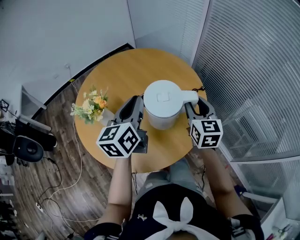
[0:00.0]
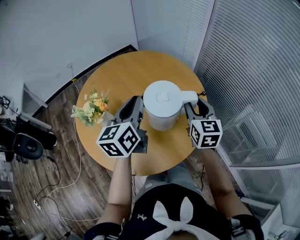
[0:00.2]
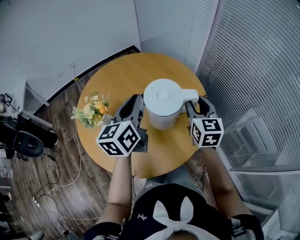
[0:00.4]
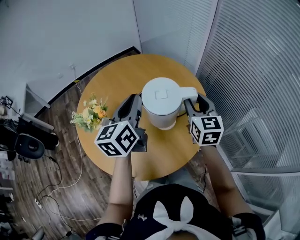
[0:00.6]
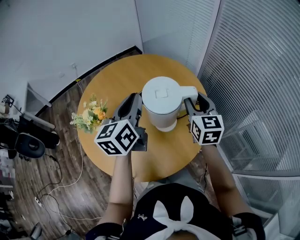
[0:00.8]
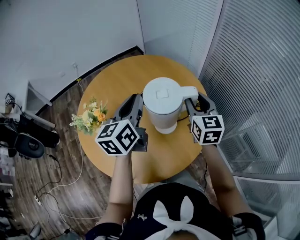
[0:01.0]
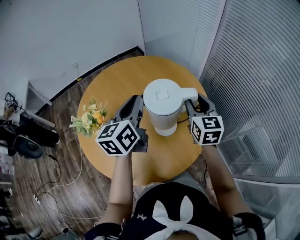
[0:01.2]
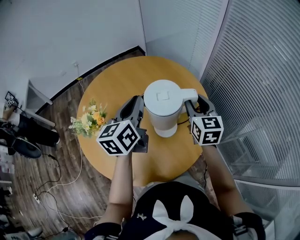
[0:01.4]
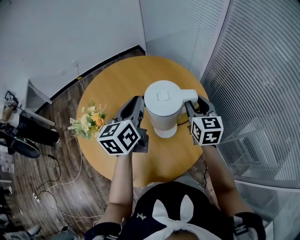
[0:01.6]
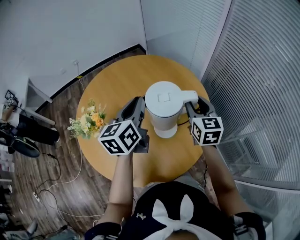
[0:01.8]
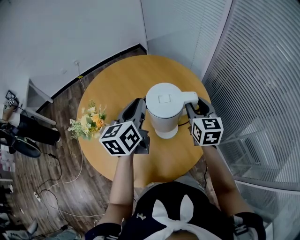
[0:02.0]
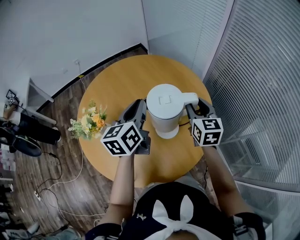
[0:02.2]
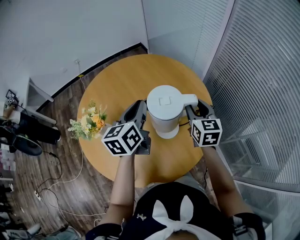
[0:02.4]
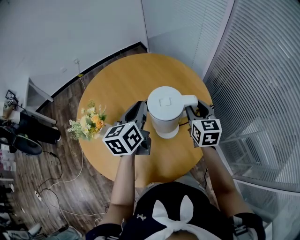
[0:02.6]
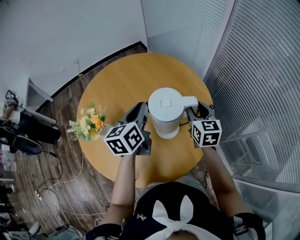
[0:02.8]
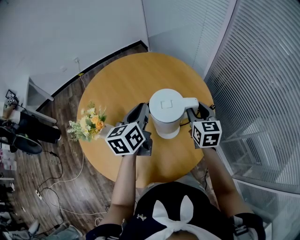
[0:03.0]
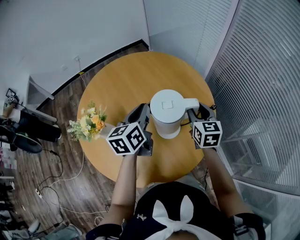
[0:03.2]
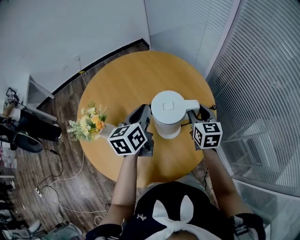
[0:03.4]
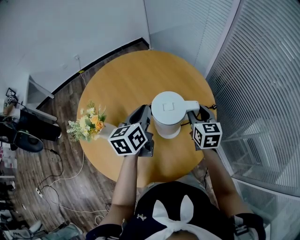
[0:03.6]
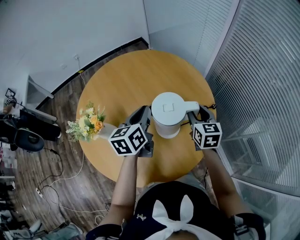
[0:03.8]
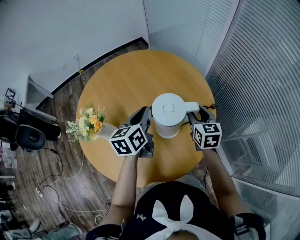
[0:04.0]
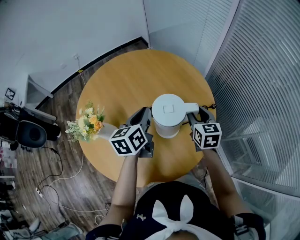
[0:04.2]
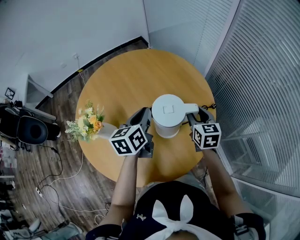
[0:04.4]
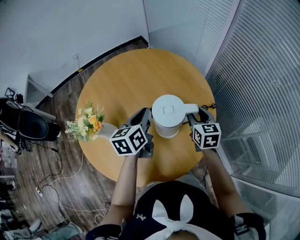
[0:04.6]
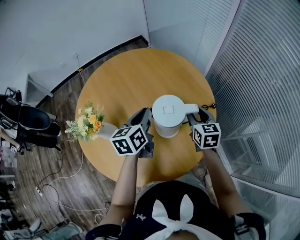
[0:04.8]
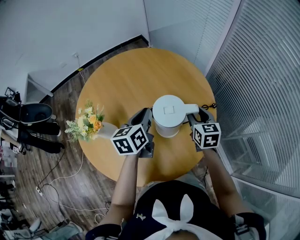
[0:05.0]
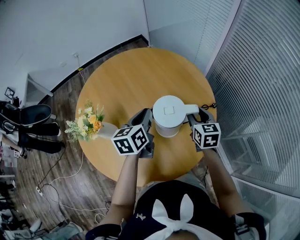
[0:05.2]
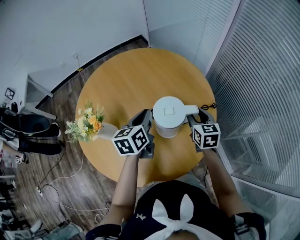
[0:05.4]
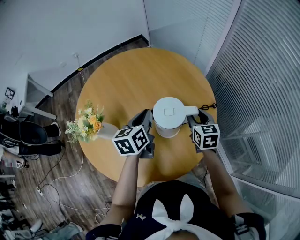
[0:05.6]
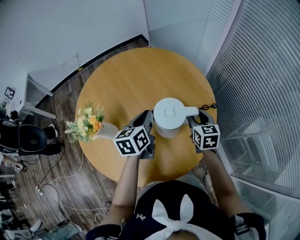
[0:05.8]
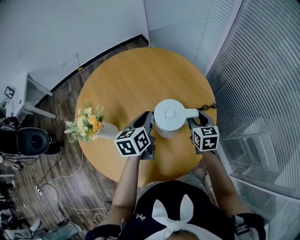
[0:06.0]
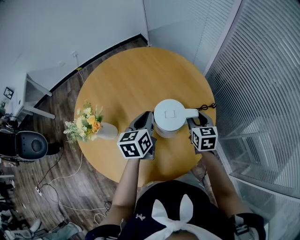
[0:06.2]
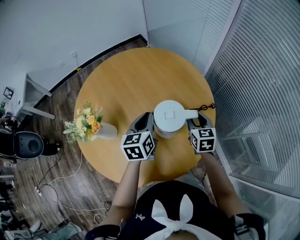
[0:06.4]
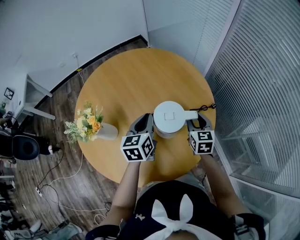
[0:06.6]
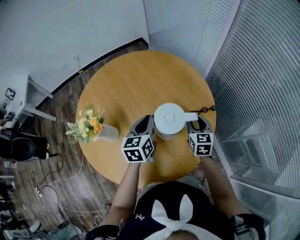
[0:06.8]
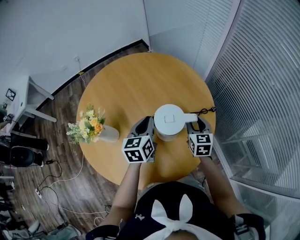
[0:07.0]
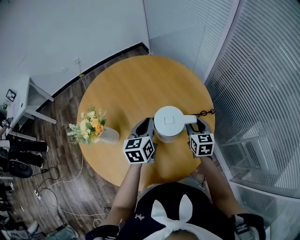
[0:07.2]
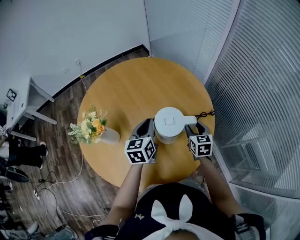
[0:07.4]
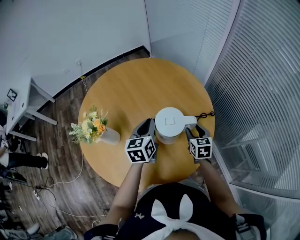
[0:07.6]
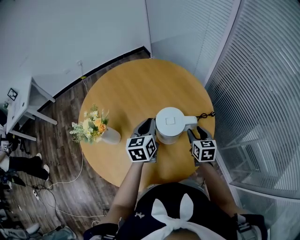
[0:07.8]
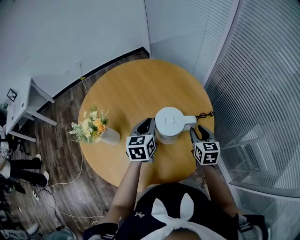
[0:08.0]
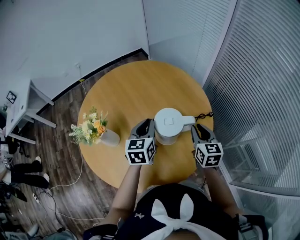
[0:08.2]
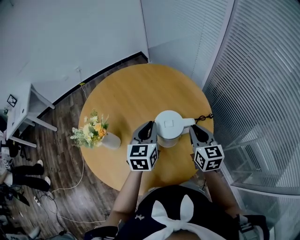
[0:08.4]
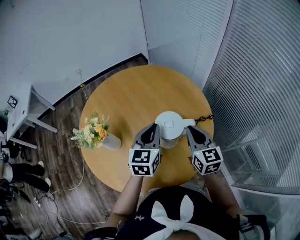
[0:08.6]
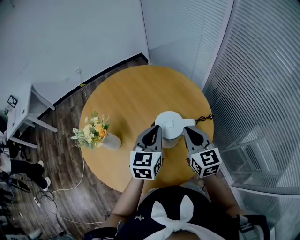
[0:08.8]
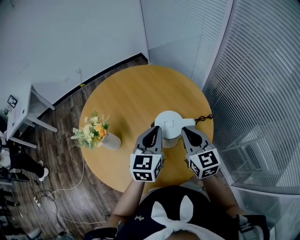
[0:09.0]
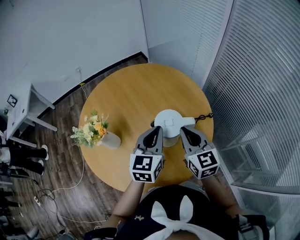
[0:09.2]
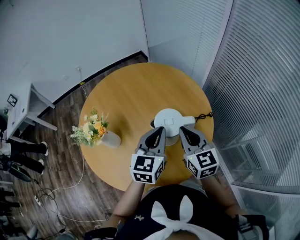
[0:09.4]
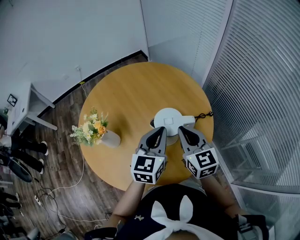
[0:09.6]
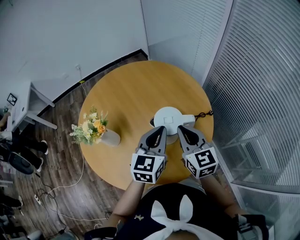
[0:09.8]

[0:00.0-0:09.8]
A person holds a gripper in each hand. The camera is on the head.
0:00.0 to 0:01.4: Both grippers move forward, approximately 10 cm.
0:01.4 to 0:02.8: Both grippers move downward, some 5 cm.
0:02.8 to 0:04.2: The grippers stay close to where they were, moving slightly.
0:04.2 to 0:07.0: The grippers move only a little.
0:07.0 to 0:08.4: The right gripper moves upward, some 10 cm, and closes; the left gripper goes some 5 cm upward.
0:08.4 to 0:09.8: The right gripper travels to the left by about 5 cm; the left gripper ends up approximately 10 cm from where it was.

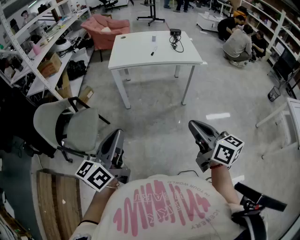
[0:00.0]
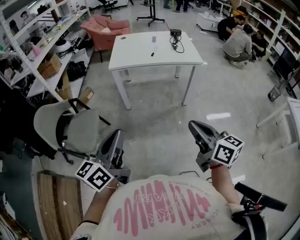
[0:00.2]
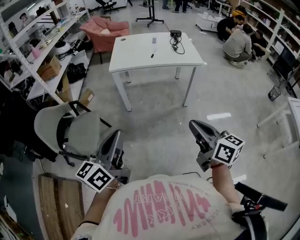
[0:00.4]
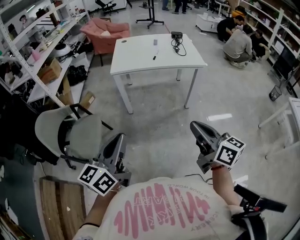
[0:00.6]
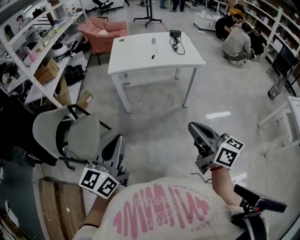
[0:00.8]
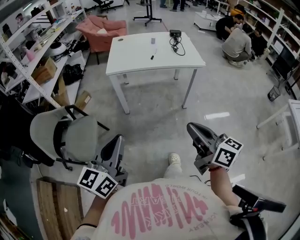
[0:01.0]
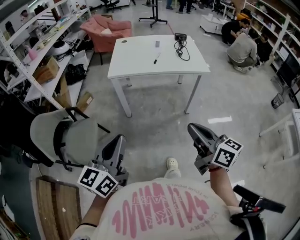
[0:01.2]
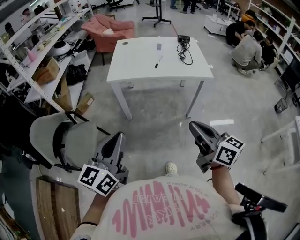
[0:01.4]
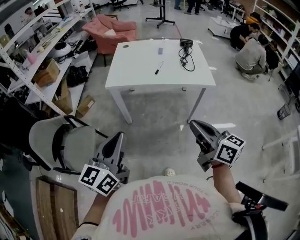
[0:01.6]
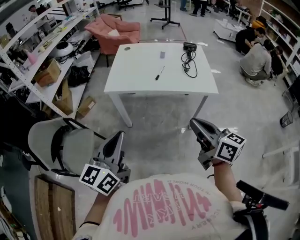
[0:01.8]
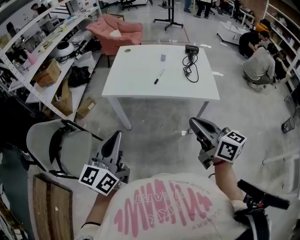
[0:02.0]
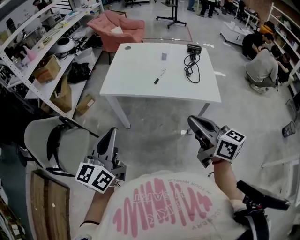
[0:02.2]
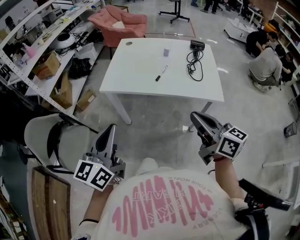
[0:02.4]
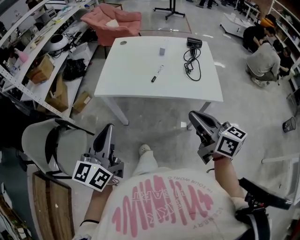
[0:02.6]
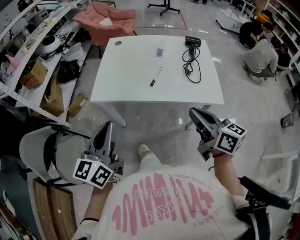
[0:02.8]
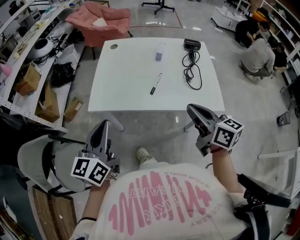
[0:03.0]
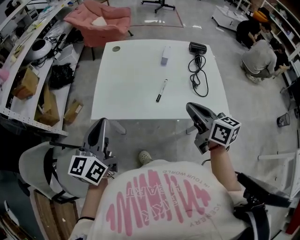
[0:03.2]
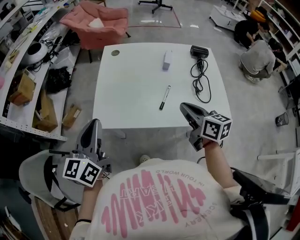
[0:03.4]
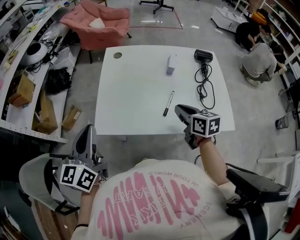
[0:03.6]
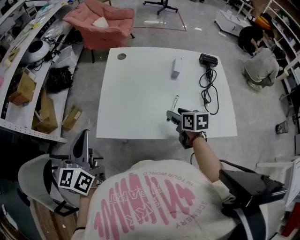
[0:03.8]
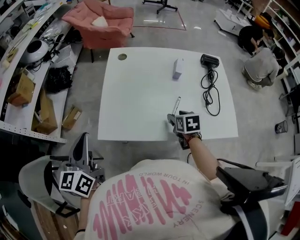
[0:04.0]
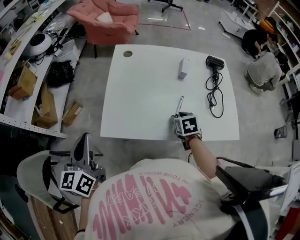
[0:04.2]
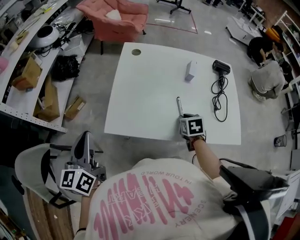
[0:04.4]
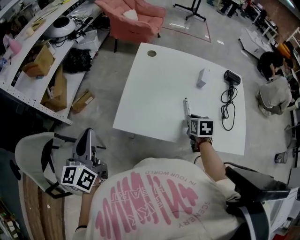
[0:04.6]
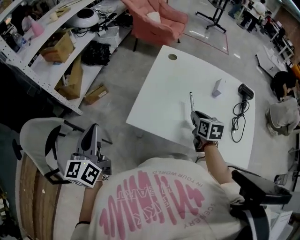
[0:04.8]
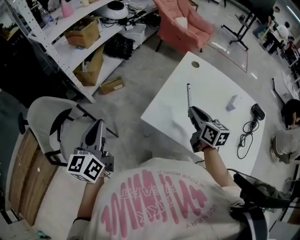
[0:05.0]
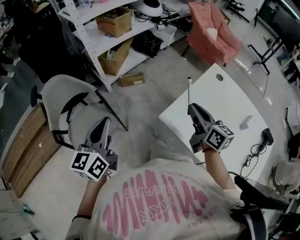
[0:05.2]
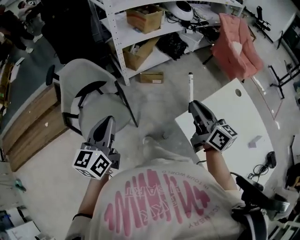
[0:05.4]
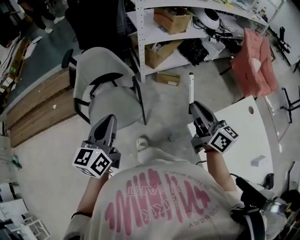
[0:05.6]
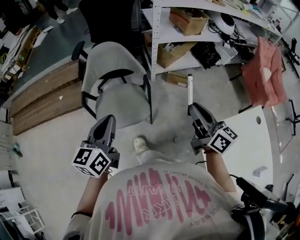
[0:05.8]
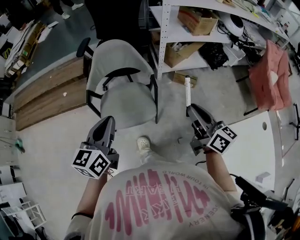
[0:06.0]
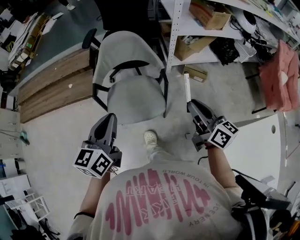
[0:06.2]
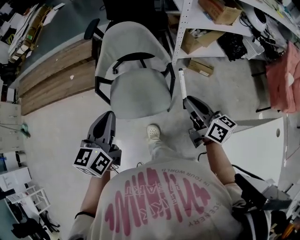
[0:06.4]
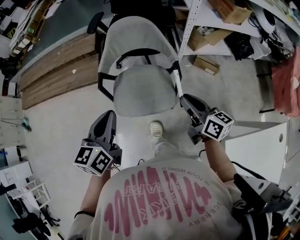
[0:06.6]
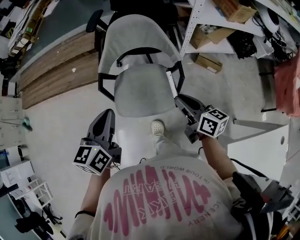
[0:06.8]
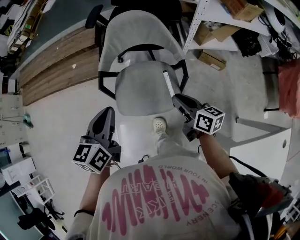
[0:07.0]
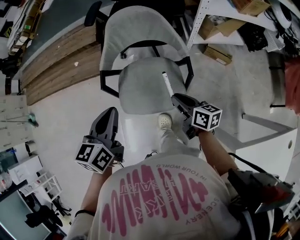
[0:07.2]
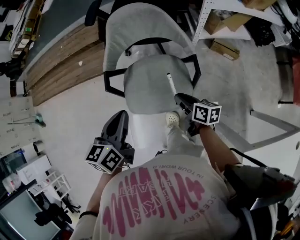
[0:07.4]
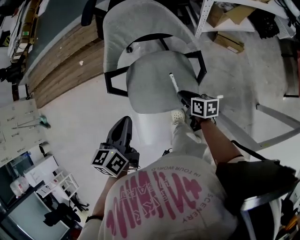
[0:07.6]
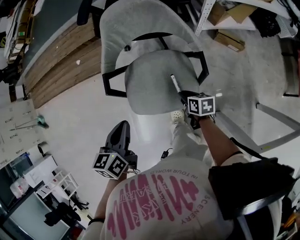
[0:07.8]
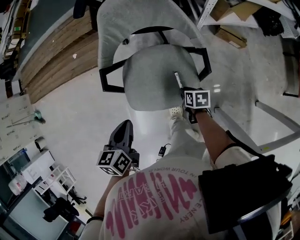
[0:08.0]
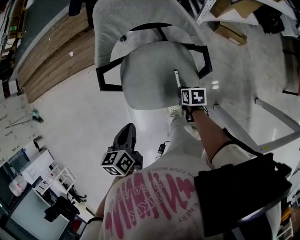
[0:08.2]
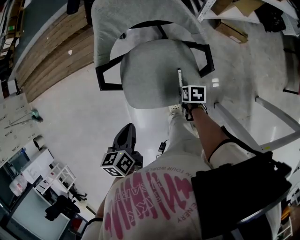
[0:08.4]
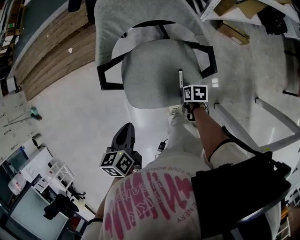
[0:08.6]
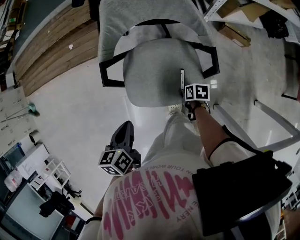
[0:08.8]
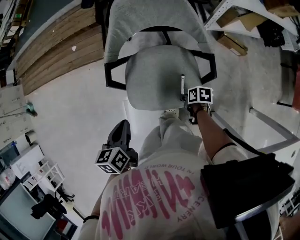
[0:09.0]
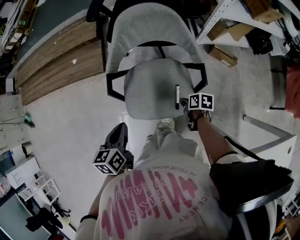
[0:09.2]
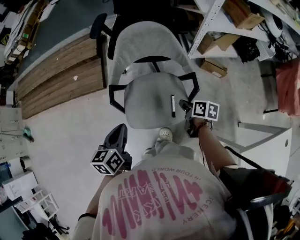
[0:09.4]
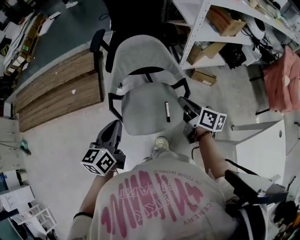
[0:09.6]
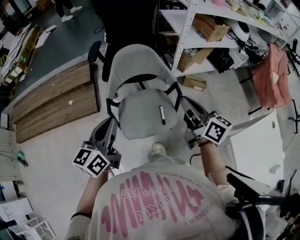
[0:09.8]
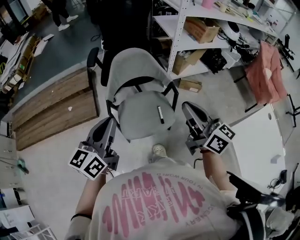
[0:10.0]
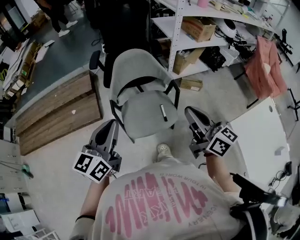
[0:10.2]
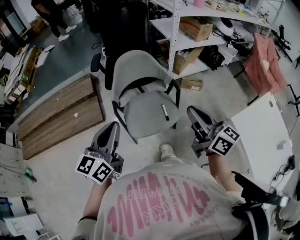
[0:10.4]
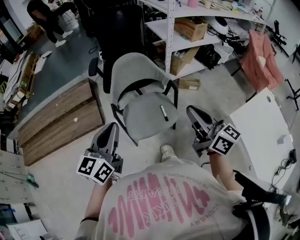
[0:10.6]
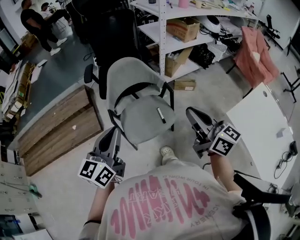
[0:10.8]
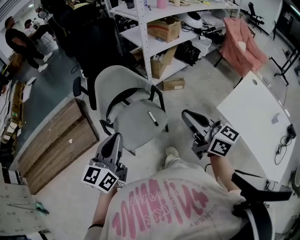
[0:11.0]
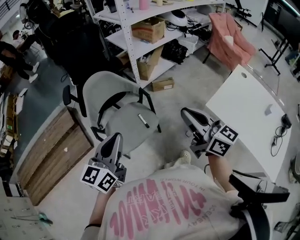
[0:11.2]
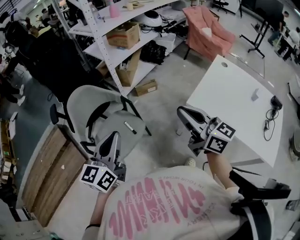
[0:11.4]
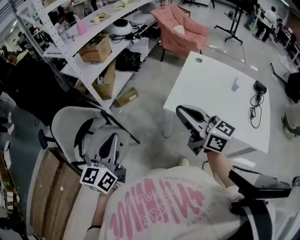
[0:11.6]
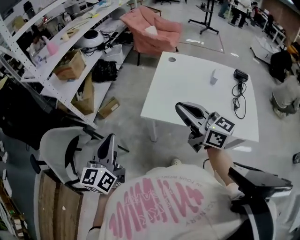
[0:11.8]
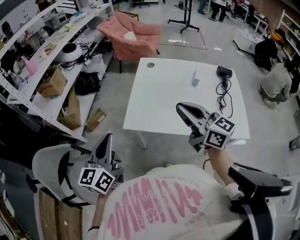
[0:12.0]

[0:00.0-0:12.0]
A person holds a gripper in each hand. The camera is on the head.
0:00.0 to 0:01.6: Both grippers travel together forward, roughly 20 cm.
0:01.6 to 0:03.0: Both grippers travel together forward, some 30 cm.
0:03.0 to 0:04.4: The left gripper goes approximately 20 cm to the left and forward, while the right gripper goes roughly 30 cm downward and forward, points its fingers some 50 degrees further downward, and opens, then closes again.
0:04.4 to 0:06.0: The right gripper moves some 60 cm, and angles its fingers upward, by about 60 degrees, while the left gripper moves roughly 35 cm, and rotates about 60 degrees.
0:06.0 to 0:07.6: The right gripper moves downward, to the left and forward, about 40 cm, and angles its fingers downward, by approximately 40 degrees, while the left gripper goes about 15 cm downward, forward and to the left, and swivels roughly 30 degrees.
0:07.6 to 0:09.0: Both grippers travel together downward, about 10 cm. The right gripper turns by approximately 30 degrees.
0:09.0 to 0:10.4: The right gripper travels upward by roughly 50 cm, and tilts its fingers roughly 60 degrees upward. Meanwhile the left gripper travels upward by some 25 cm, and points its fingers about 40 degrees further upward.
0:10.4 to 0:12.0: Both grippers are carried about 40 cm. The right gripper changes its angle by roughly 50 degrees; the left gripper changes its angle by about 50 degrees.

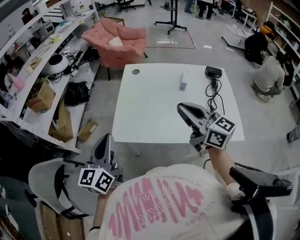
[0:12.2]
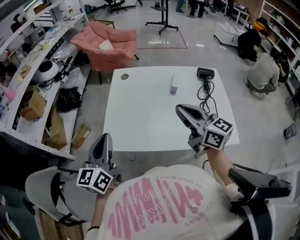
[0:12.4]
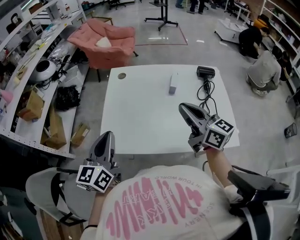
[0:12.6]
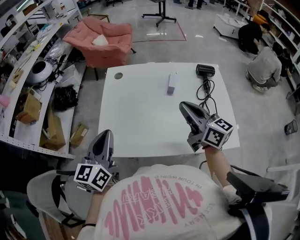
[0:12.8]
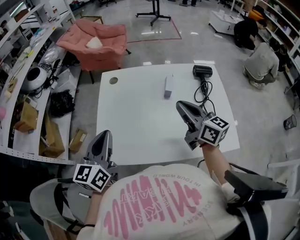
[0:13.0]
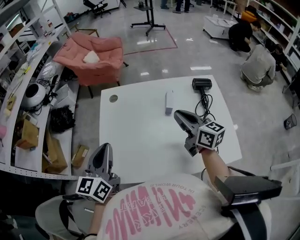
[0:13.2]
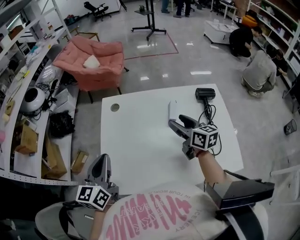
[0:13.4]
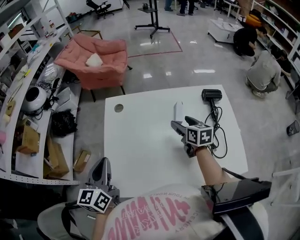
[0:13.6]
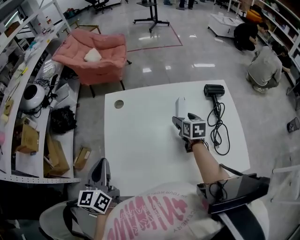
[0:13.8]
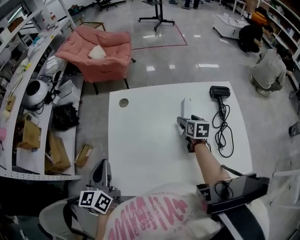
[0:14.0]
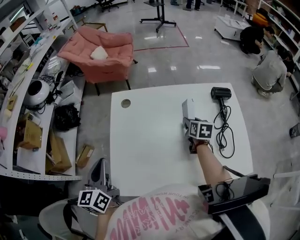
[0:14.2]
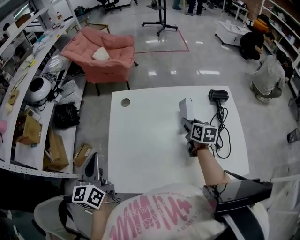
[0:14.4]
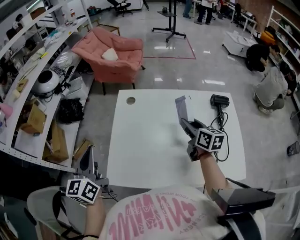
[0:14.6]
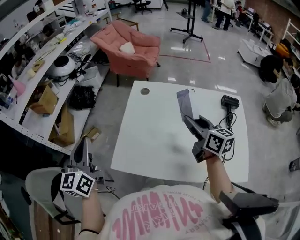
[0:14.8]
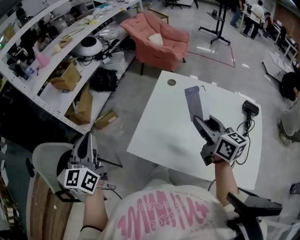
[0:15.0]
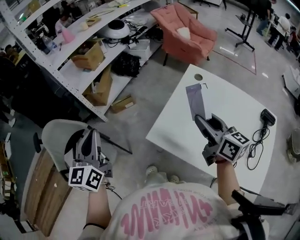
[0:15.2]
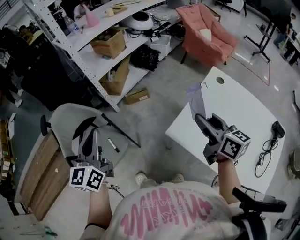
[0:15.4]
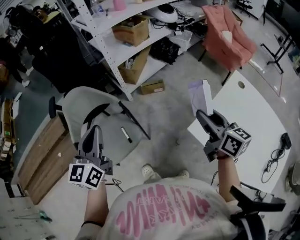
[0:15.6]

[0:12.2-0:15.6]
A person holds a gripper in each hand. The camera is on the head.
0:12.2 to 0:13.8: The right gripper goes some 40 cm downward, forward and to the right, tilts its fingers approximately 40 degrees downward, and opens its fingers, while the left gripper travels forward by about 20 cm.
0:13.8 to 0:15.6: Both grippers are carried some 50 cm. The left gripper swivels about 50 degrees, while the right gripper points its fingers some 30 degrees further upward, and closes up.
